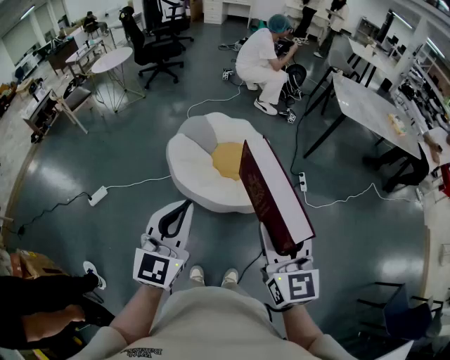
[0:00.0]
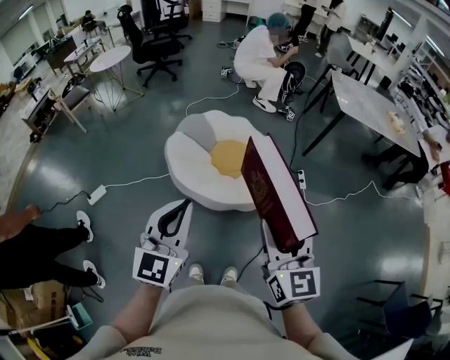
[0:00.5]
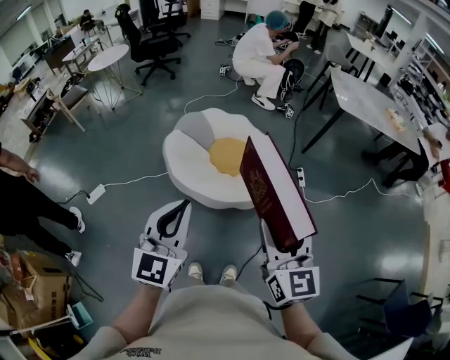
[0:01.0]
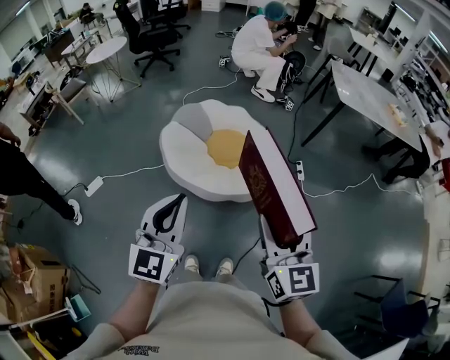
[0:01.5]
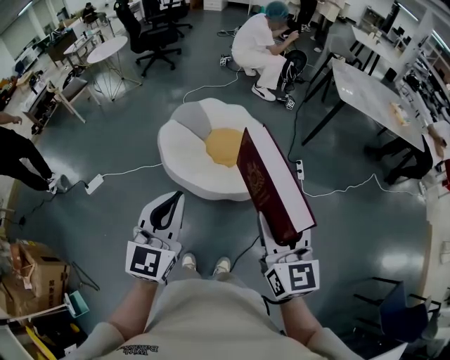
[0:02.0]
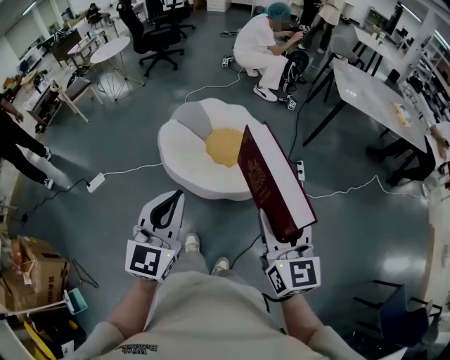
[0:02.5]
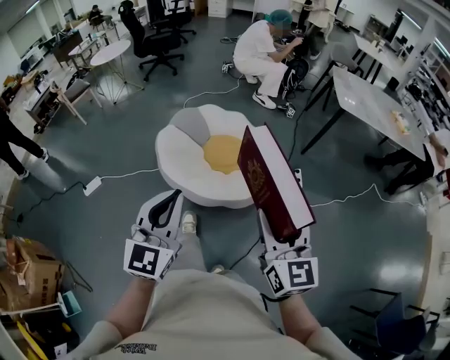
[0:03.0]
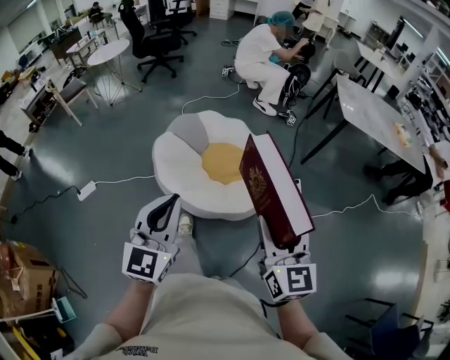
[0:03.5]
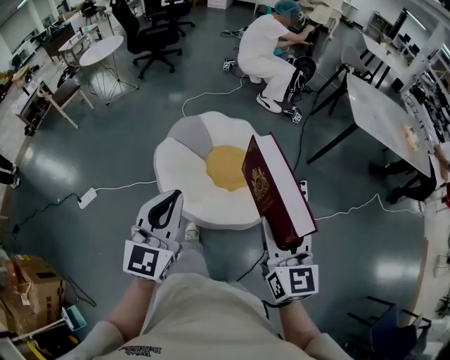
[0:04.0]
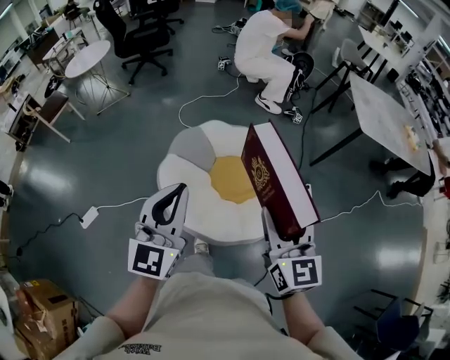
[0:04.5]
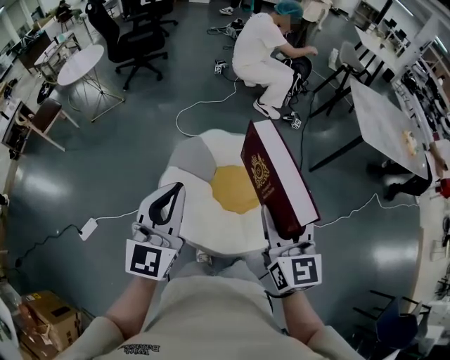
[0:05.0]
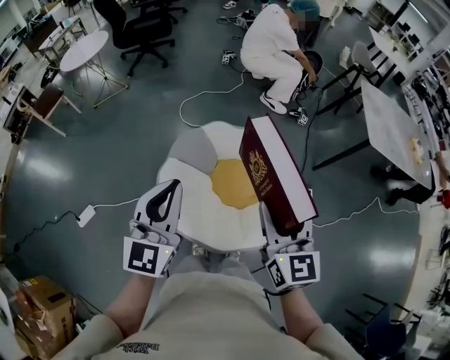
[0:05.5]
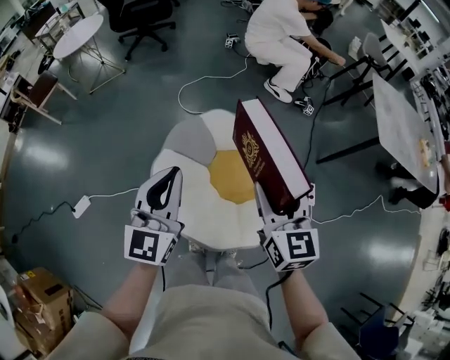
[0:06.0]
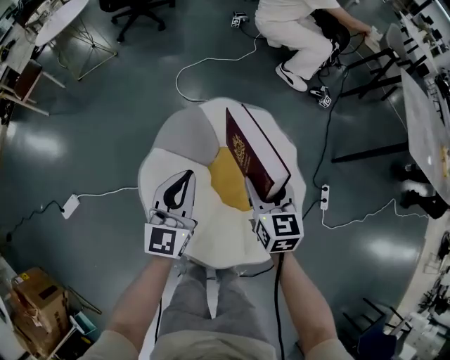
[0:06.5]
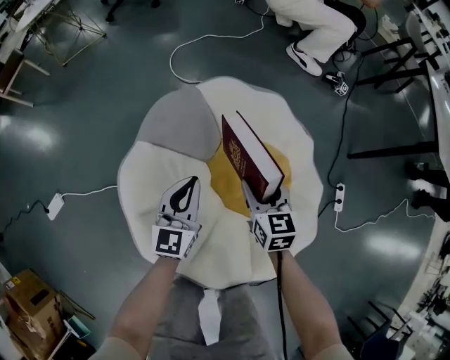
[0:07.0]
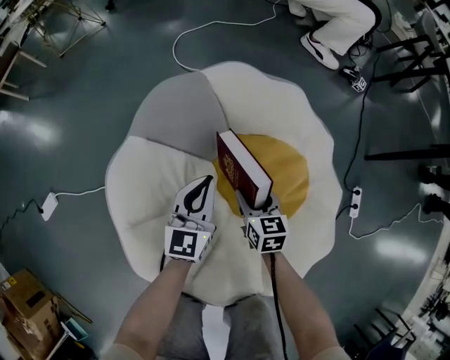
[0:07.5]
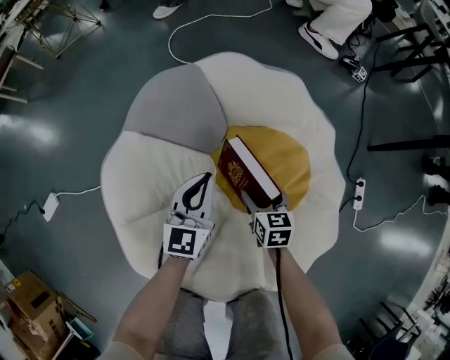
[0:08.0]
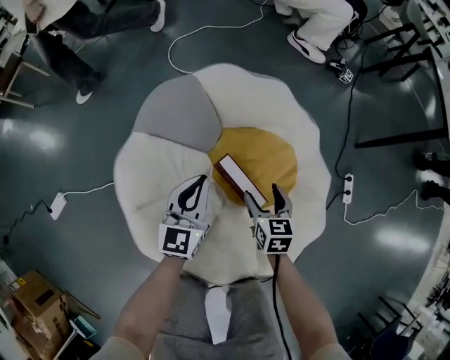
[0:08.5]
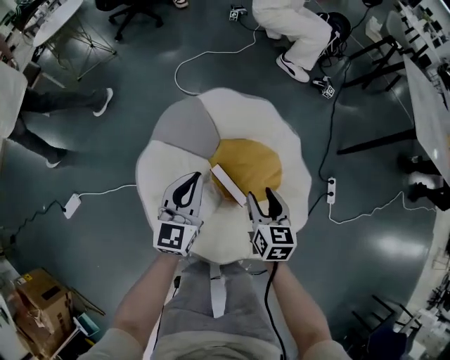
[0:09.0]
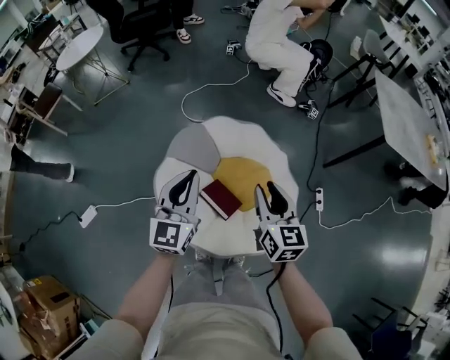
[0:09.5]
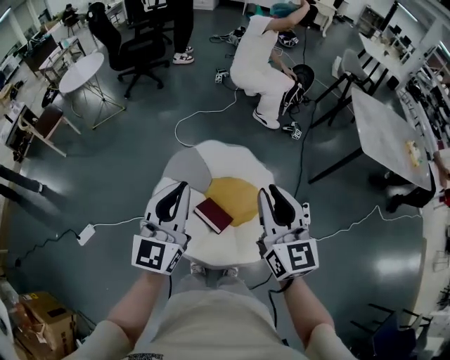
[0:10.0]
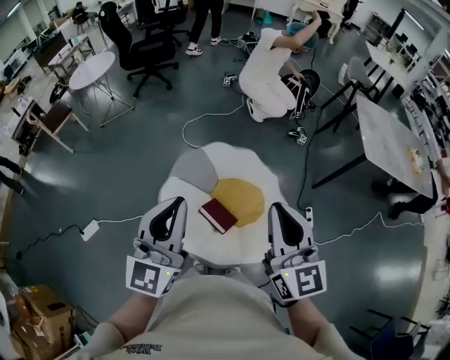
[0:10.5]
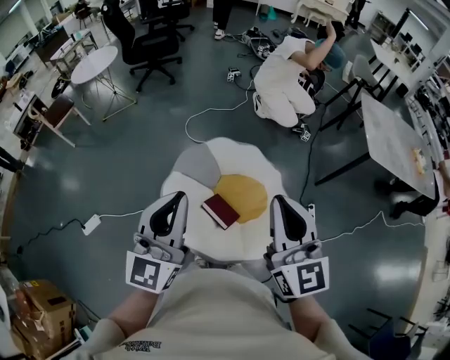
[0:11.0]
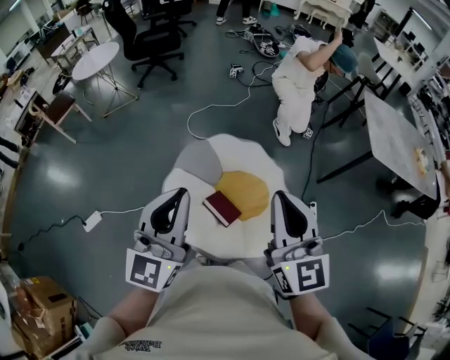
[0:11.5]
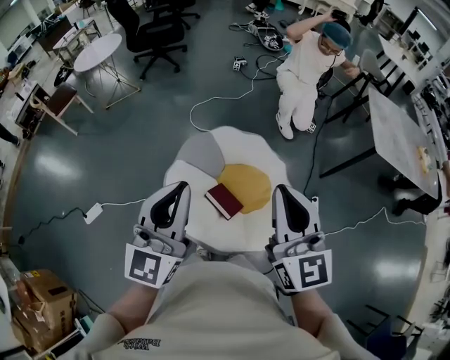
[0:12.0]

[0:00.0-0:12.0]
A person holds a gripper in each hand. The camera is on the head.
0:00.0 to 0:02.0: Both grippers travel together to the right, some 5 cm.
0:02.0 to 0:04.0: The two grippers go roughly 20 cm forward.
0:04.0 to 0:06.0: The two grippers go roughly 35 cm forward.
0:06.0 to 0:08.0: The two grippers go approximately 70 cm downward. The right gripper rotates about 30 degrees.
0:08.0 to 0:10.0: Both grippers travel together upward, about 70 cm. The right gripper tilts its fingers some 40 degrees upward, and closes up. The left gripper changes its angle by about 20 degrees.
0:10.0 to 0:12.0: The right gripper heads upward, covering some 5 cm. Meanwhile the left gripper is displaced backward and upward by roughly 10 cm.

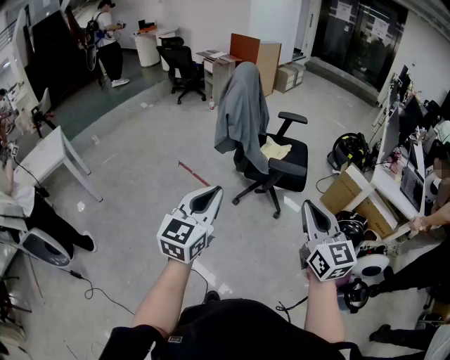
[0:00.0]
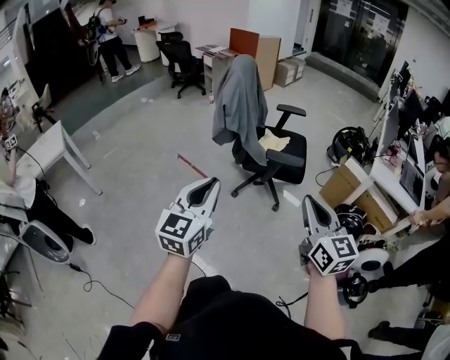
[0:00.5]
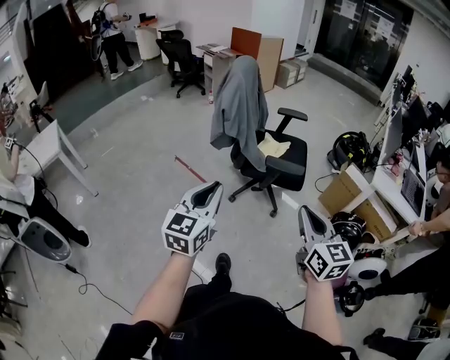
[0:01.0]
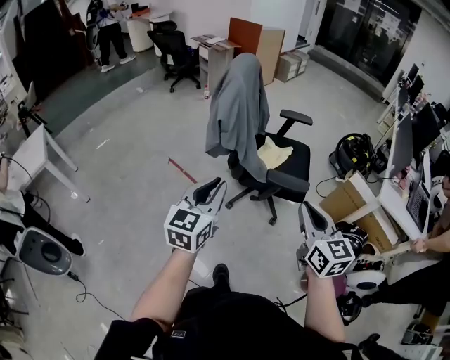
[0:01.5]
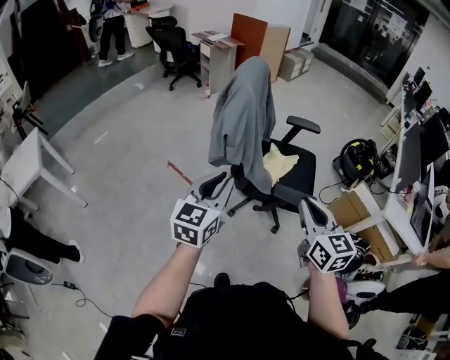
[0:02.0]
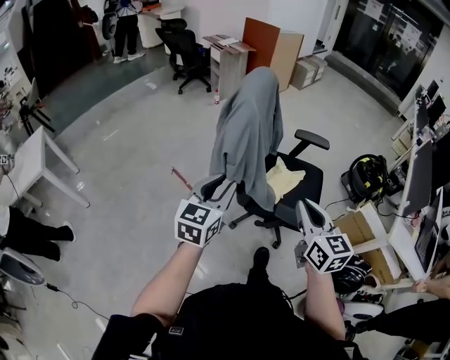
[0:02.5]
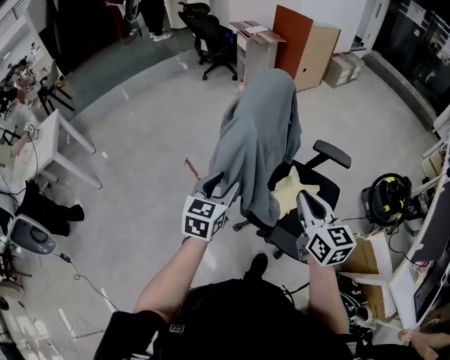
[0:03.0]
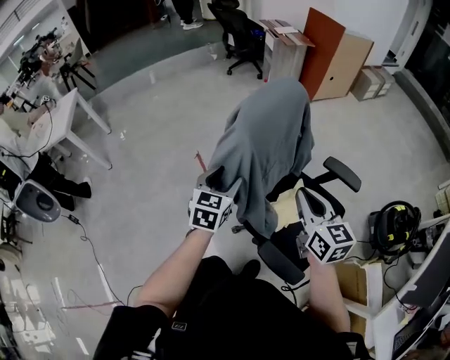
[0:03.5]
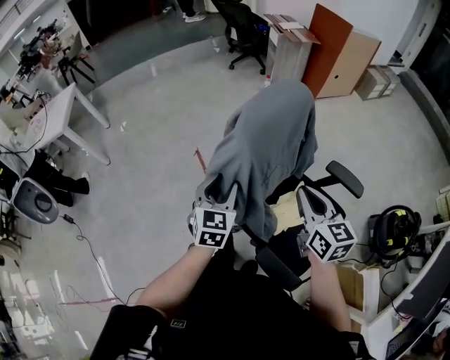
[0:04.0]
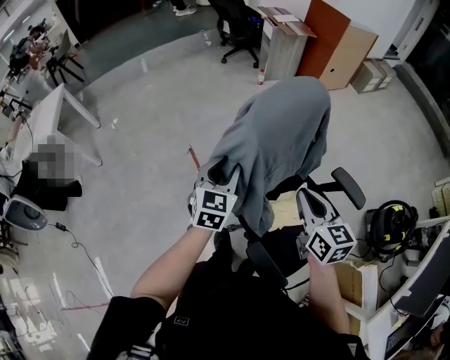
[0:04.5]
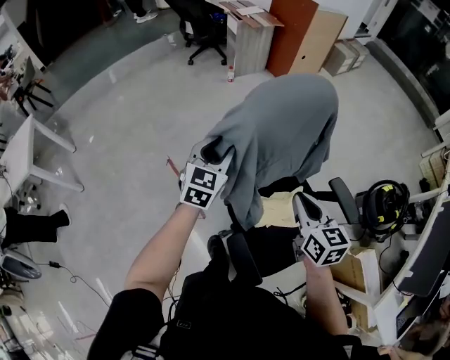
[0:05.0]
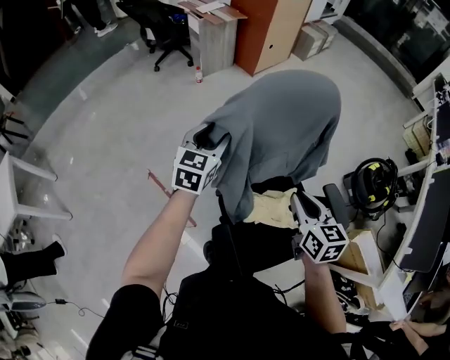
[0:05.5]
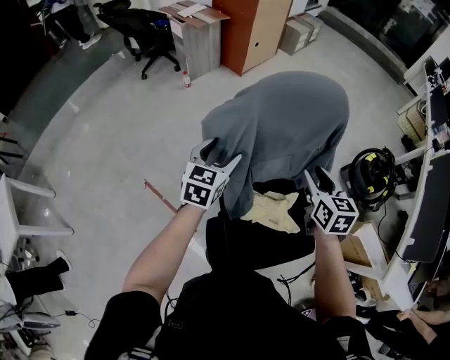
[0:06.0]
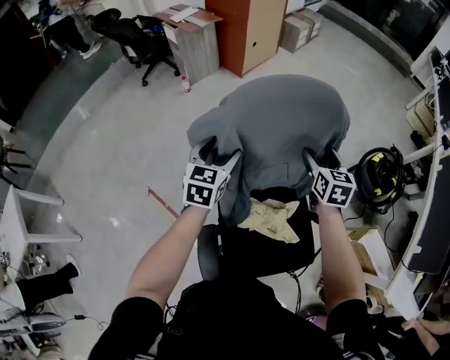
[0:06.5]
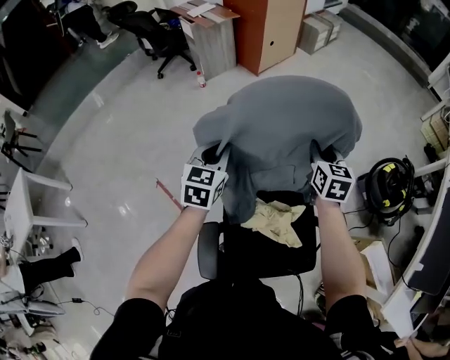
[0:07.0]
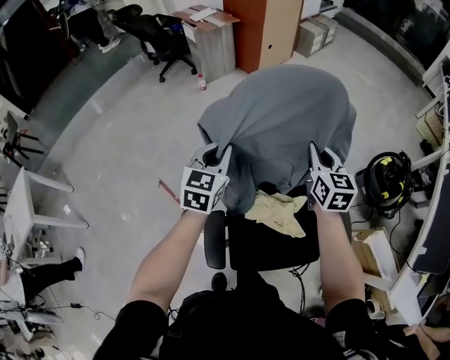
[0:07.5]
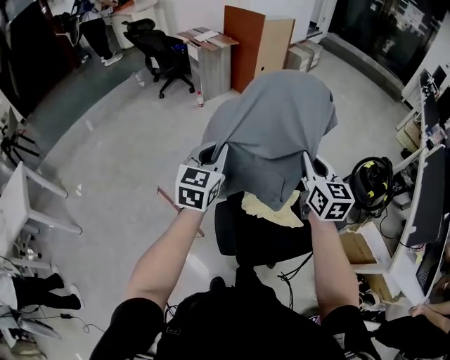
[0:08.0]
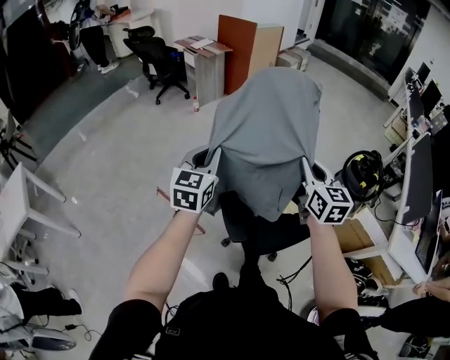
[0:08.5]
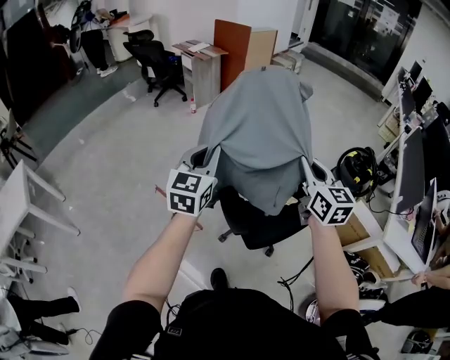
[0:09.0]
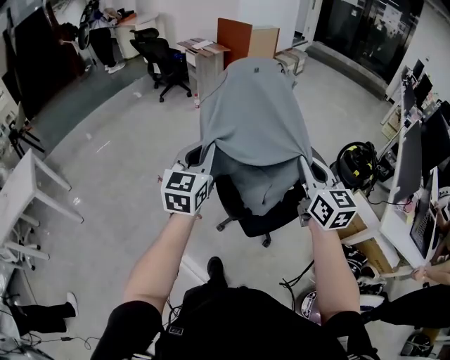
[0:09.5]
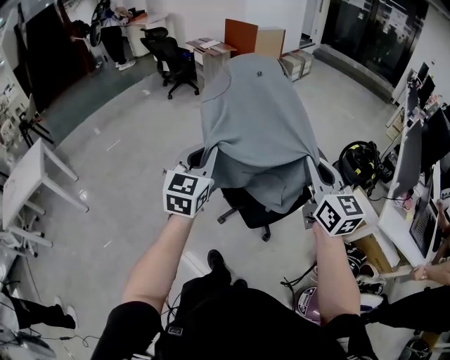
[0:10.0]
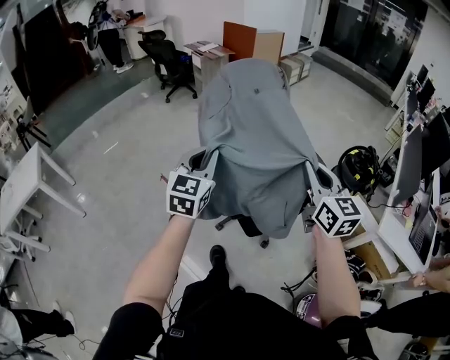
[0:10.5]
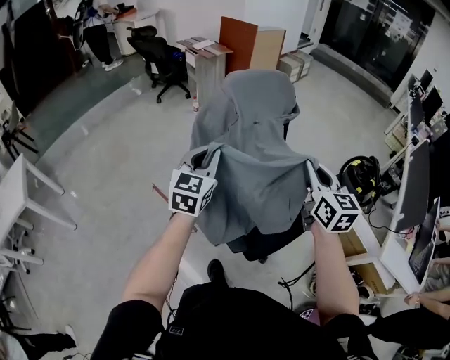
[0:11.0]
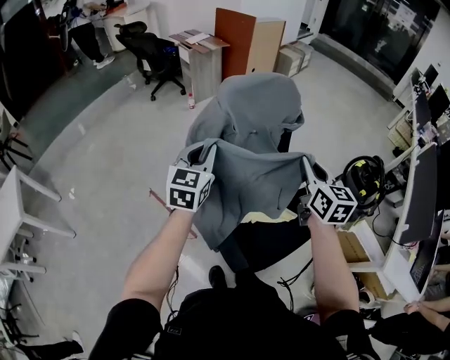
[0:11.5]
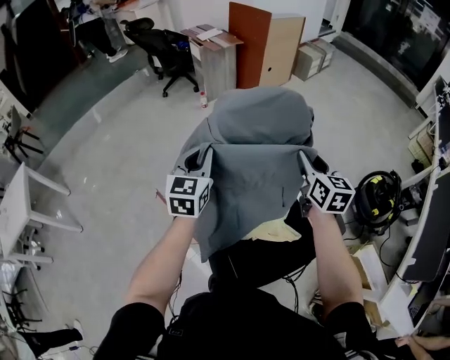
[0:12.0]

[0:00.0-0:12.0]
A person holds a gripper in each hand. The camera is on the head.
0:00.0 to 0:02.0: Both grippers move forward, approximately 35 cm.
0:02.0 to 0:04.0: The right gripper moves some 40 cm, and turns by roughly 30 degrees, while the left gripper moves some 35 cm, swivels some 40 degrees, and opens up.
0:04.0 to 0:06.0: The right gripper ends up roughly 25 cm from where it was, changes its angle by approximately 40 degrees, and opens. The left gripper moves approximately 30 cm, changes its angle by approximately 40 degrees, and opens its fingers.
0:06.0 to 0:08.0: The two grippers go roughly 15 cm backward and upward. The left gripper closes. The right gripper closes its fingers.
0:08.0 to 0:10.0: Both grippers move backward, approximately 35 cm.
0:10.0 to 0:12.0: Both grippers are carried forward, about 50 cm.

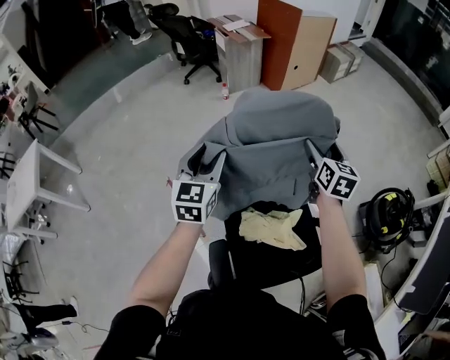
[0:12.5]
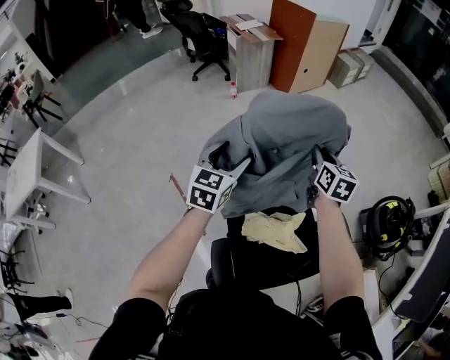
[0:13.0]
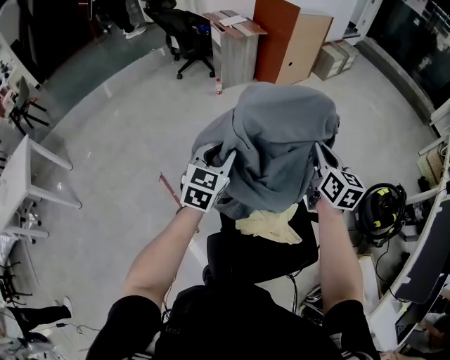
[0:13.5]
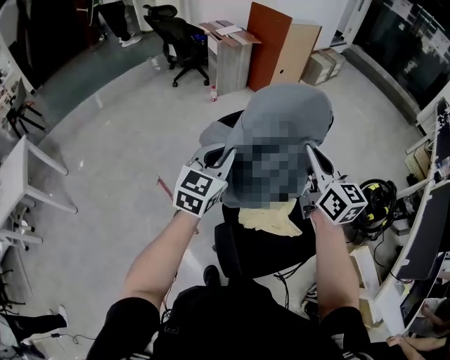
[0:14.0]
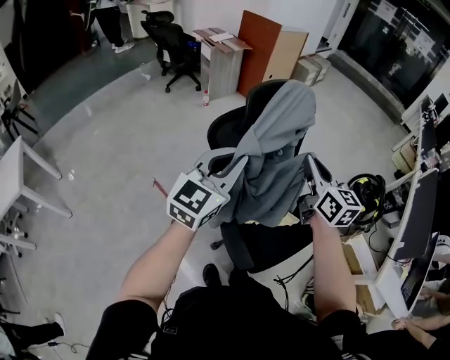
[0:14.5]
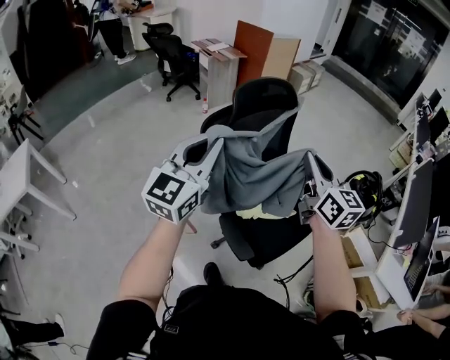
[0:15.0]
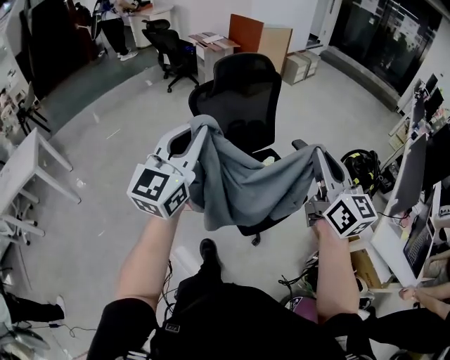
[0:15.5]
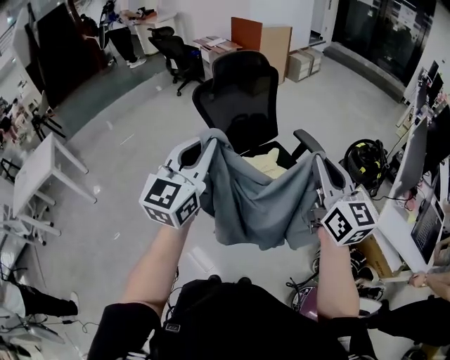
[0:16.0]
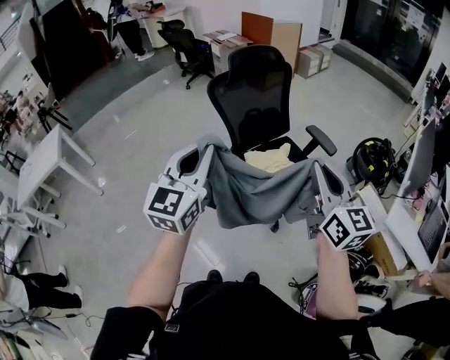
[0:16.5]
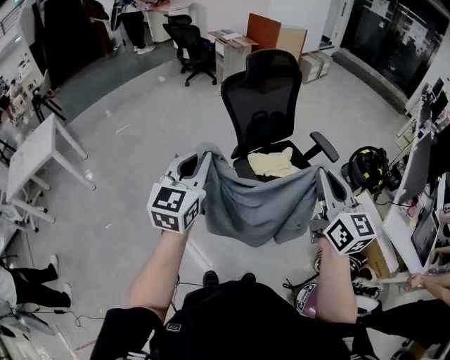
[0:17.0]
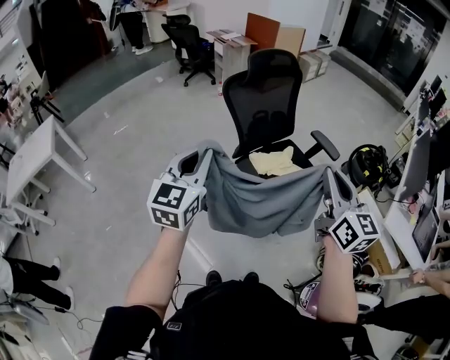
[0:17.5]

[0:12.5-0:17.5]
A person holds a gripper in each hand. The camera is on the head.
0:12.5 to 0:15.0: Both grippers move backward and upward, roughly 40 cm. The right gripper changes its angle by about 20 degrees, and closes, while the left gripper rotates about 30 degrees, and closes its fingers.
0:15.0 to 0:17.5: Both grippers travel together backward, some 30 cm.
